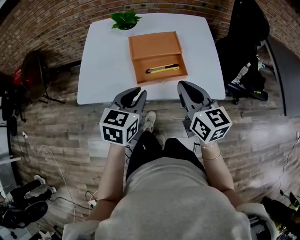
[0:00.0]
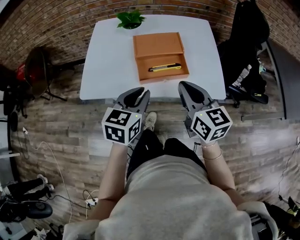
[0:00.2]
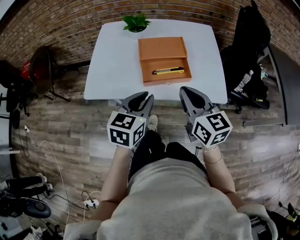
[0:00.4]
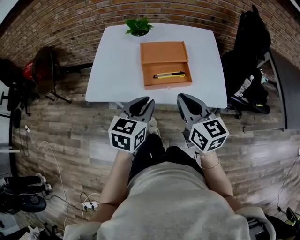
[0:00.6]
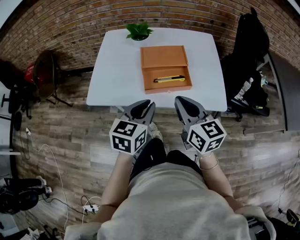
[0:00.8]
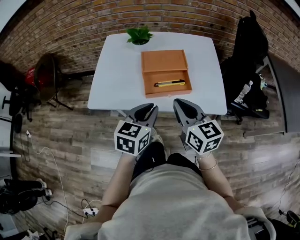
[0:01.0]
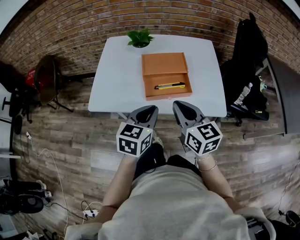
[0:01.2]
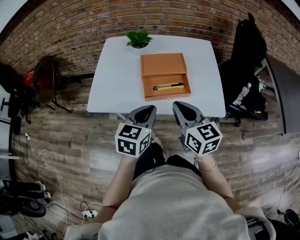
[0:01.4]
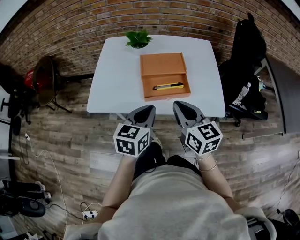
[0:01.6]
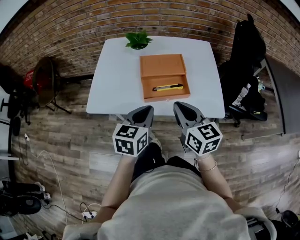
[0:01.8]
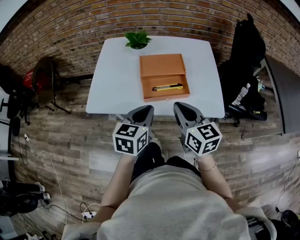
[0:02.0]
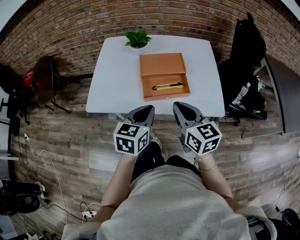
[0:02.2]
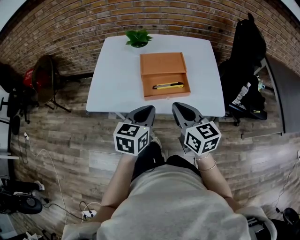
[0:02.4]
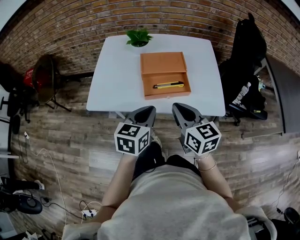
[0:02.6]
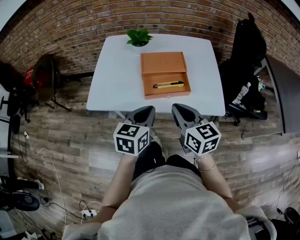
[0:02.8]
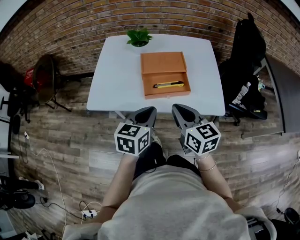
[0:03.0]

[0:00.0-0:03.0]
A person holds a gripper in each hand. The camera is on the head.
0:00.0 to 0:03.0: There are only small adjustments of the grippers.

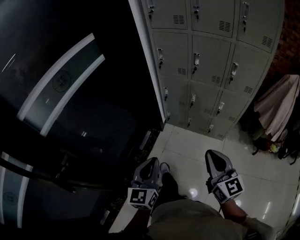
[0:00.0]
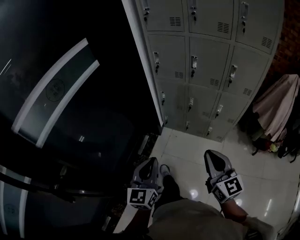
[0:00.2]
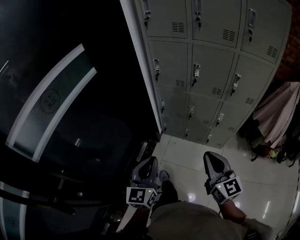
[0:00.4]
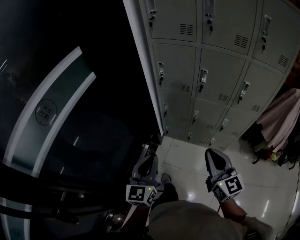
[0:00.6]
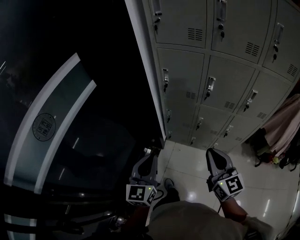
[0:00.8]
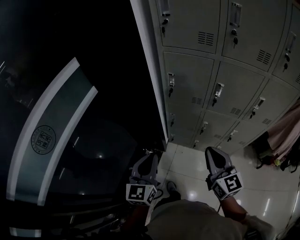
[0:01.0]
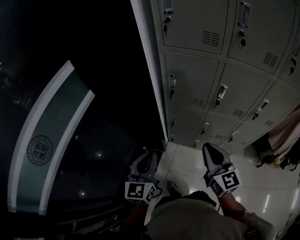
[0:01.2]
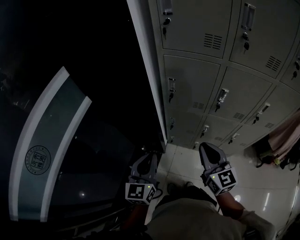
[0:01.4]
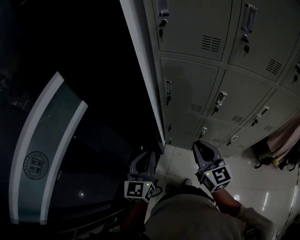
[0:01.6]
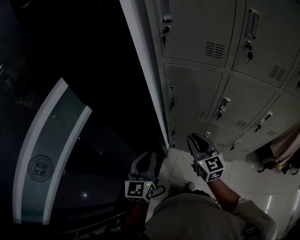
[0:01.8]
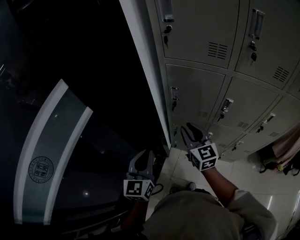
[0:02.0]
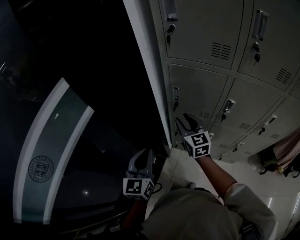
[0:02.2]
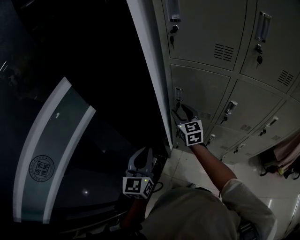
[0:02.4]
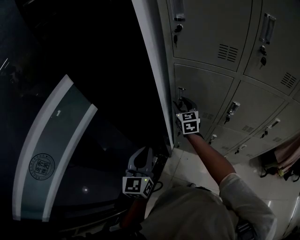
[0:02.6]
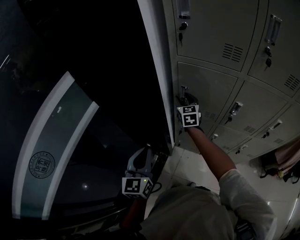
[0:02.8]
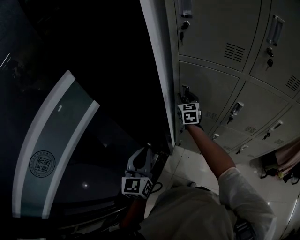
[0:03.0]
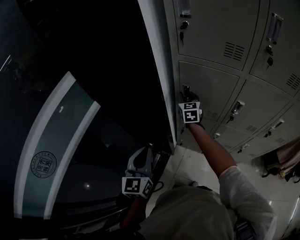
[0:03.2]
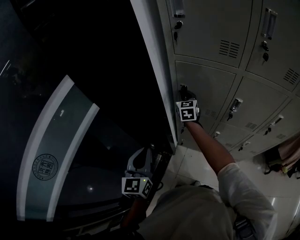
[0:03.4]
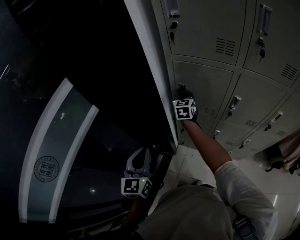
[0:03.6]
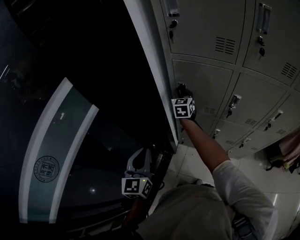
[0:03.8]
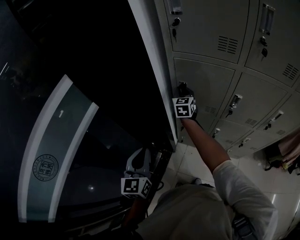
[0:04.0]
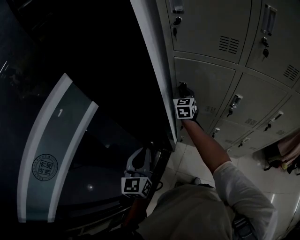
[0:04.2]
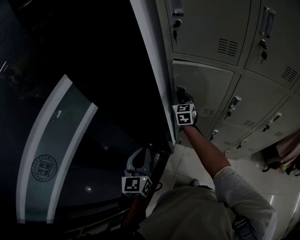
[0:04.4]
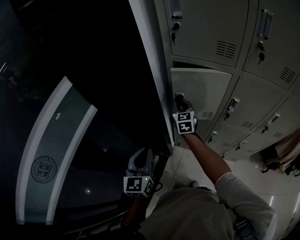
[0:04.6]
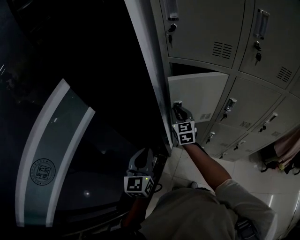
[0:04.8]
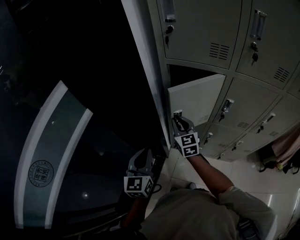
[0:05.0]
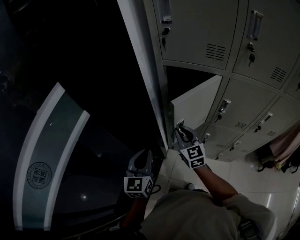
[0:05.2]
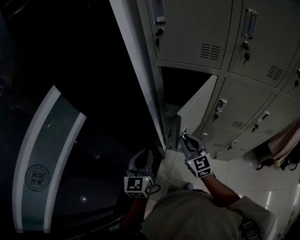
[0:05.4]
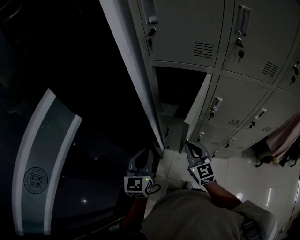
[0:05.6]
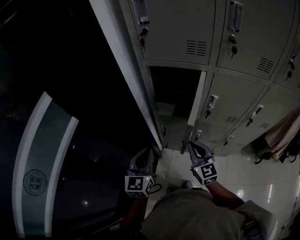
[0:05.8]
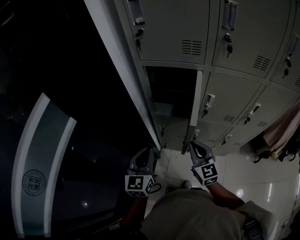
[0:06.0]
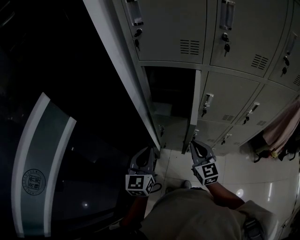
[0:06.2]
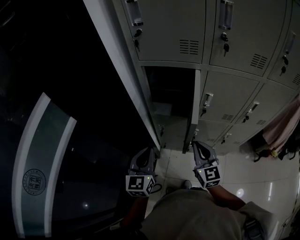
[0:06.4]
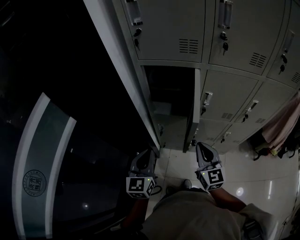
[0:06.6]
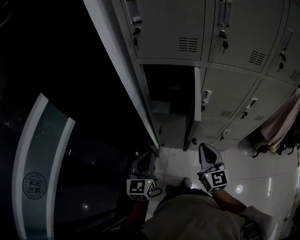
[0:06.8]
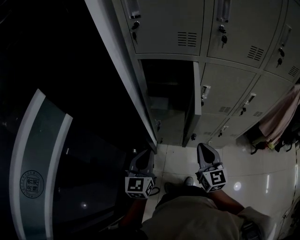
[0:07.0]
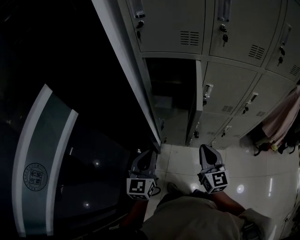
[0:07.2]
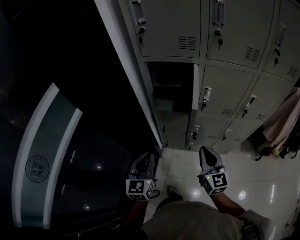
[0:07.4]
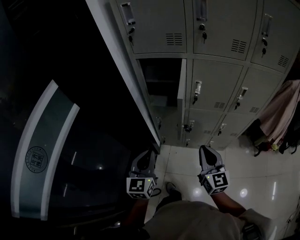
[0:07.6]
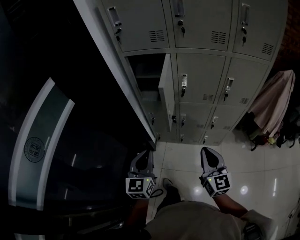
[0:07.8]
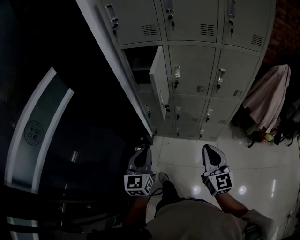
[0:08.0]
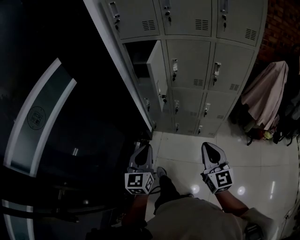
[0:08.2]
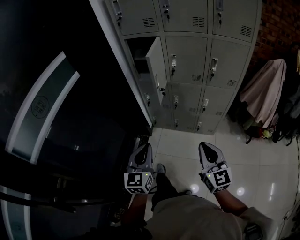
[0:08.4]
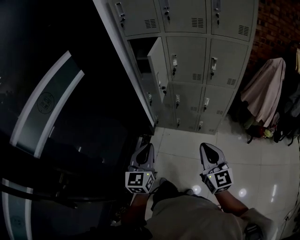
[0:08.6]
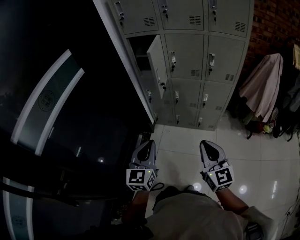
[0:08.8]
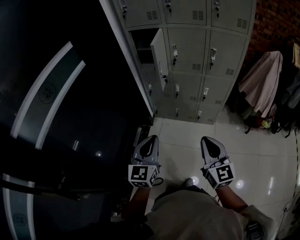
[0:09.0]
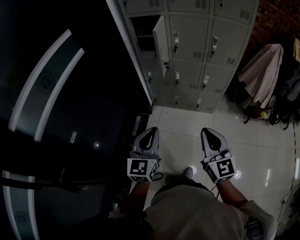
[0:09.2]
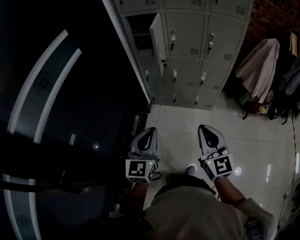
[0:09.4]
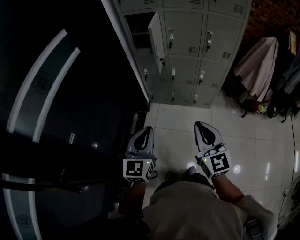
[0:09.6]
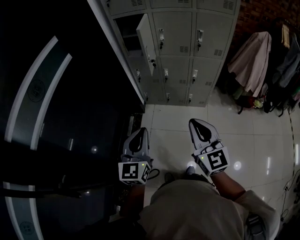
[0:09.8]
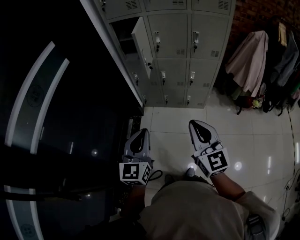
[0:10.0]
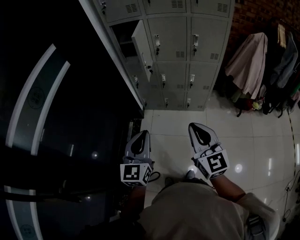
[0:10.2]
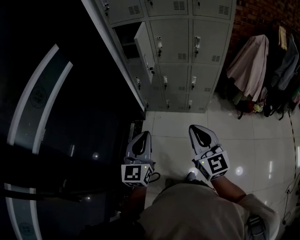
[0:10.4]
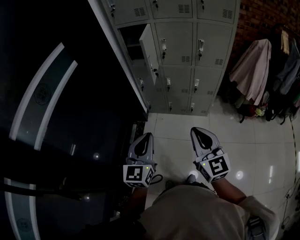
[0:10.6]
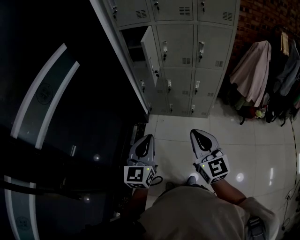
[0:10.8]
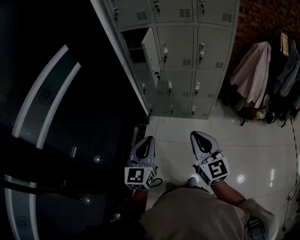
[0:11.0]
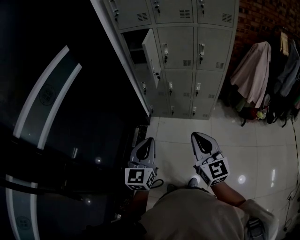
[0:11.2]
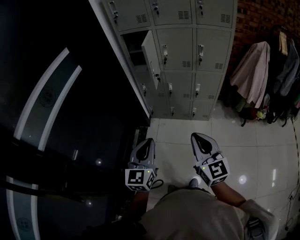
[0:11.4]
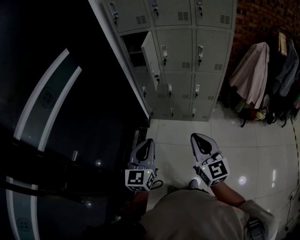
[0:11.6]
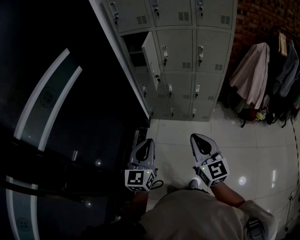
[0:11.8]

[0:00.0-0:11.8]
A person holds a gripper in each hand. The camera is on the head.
0:00.0 to 0:01.4: Both grippers are carried forward, about 40 cm.
0:01.4 to 0:03.0: The right gripper goes some 40 cm forward, and opens its fingers; the left gripper is displaced forward by about 10 cm.
0:03.0 to 0:04.4: The right gripper closes up.
0:04.4 to 0:06.0: The left gripper goes some 10 cm to the right; the right gripper heads backward and to the right, covering roughly 30 cm.
0:06.0 to 0:07.4: The right gripper is displaced backward and upward by approximately 10 cm. The left gripper heads backward, covering roughly 10 cm.
0:07.4 to 0:08.8: The right gripper is displaced backward by approximately 40 cm, while the left gripper moves backward and to the right, approximately 40 cm.
0:08.8 to 0:10.4: The two grippers go roughly 5 cm backward.
0:10.4 to 0:11.8: There are only small adjustments of the grippers.

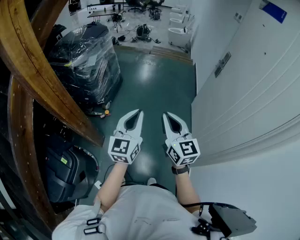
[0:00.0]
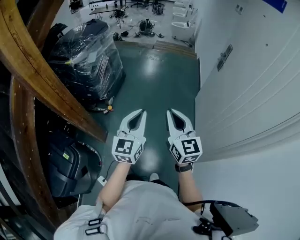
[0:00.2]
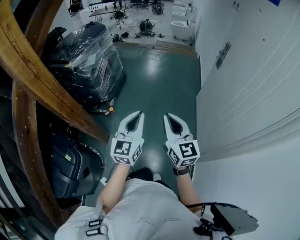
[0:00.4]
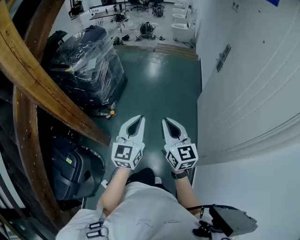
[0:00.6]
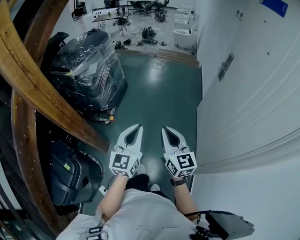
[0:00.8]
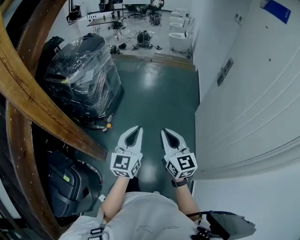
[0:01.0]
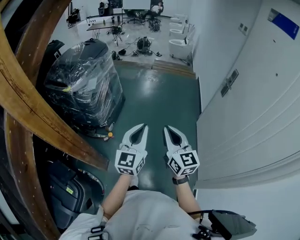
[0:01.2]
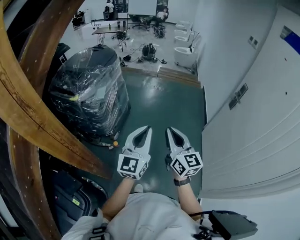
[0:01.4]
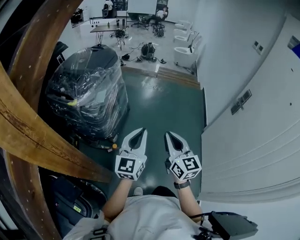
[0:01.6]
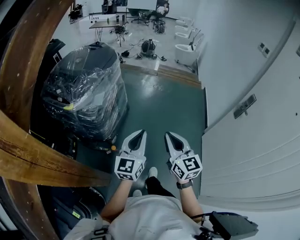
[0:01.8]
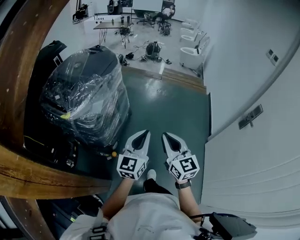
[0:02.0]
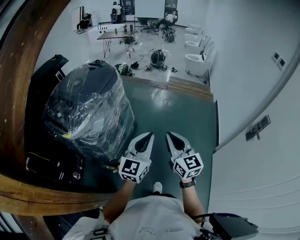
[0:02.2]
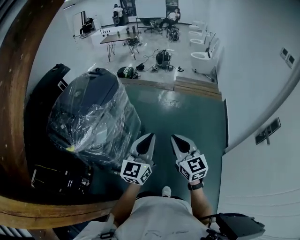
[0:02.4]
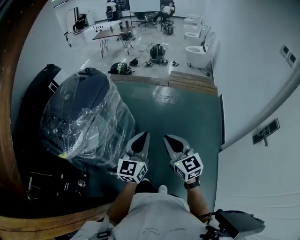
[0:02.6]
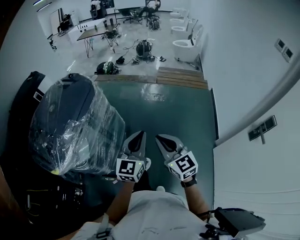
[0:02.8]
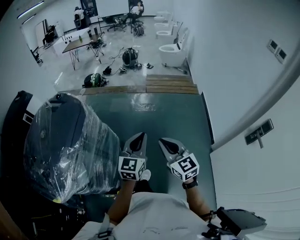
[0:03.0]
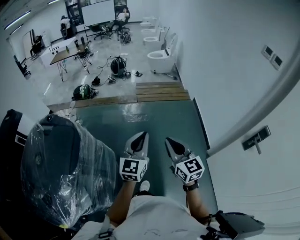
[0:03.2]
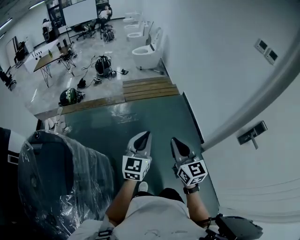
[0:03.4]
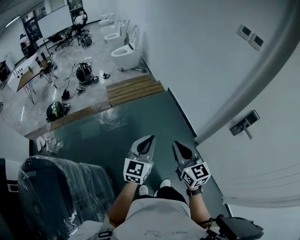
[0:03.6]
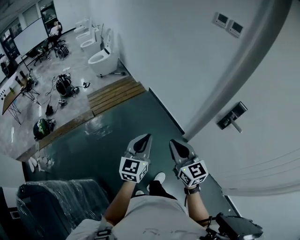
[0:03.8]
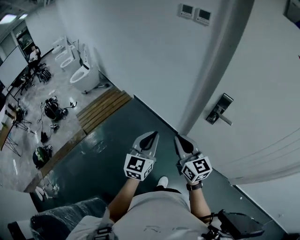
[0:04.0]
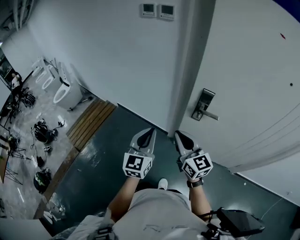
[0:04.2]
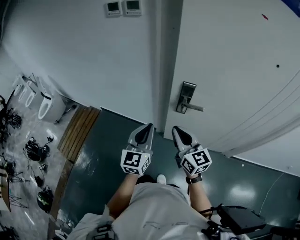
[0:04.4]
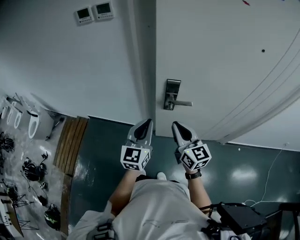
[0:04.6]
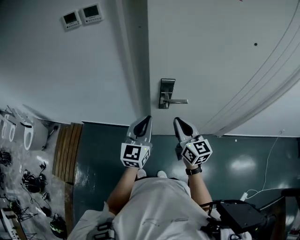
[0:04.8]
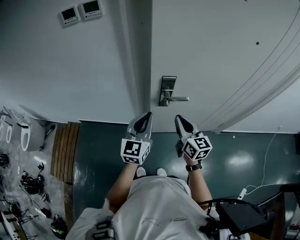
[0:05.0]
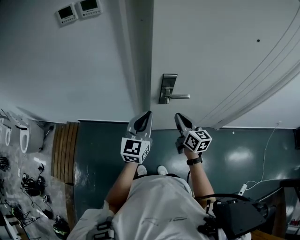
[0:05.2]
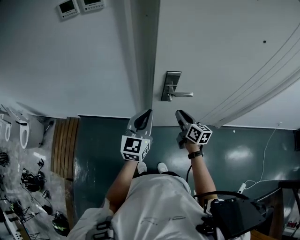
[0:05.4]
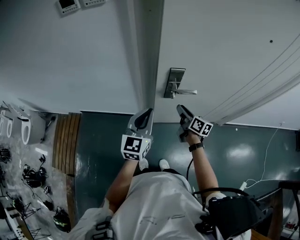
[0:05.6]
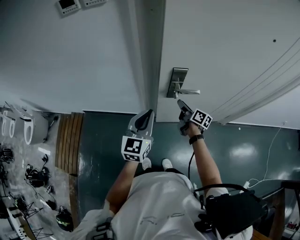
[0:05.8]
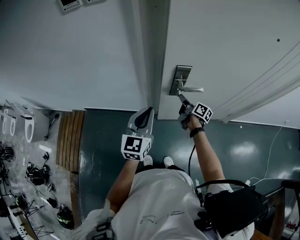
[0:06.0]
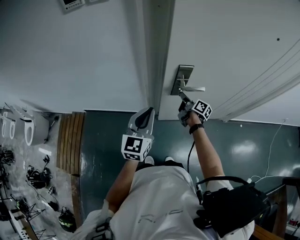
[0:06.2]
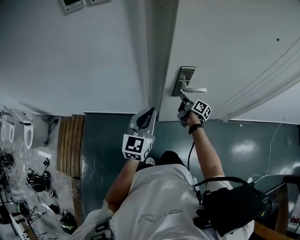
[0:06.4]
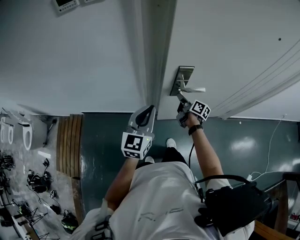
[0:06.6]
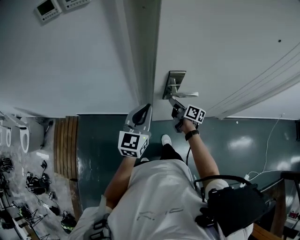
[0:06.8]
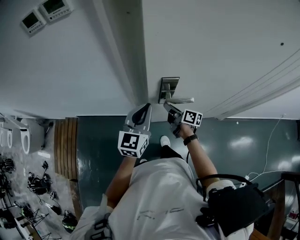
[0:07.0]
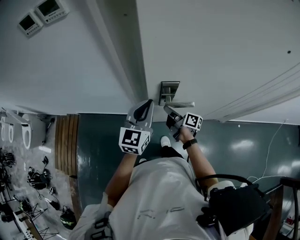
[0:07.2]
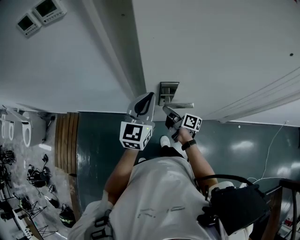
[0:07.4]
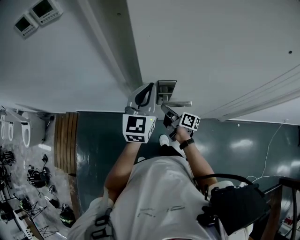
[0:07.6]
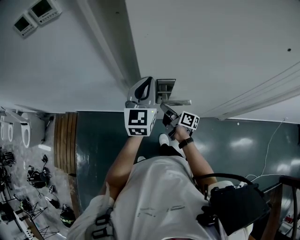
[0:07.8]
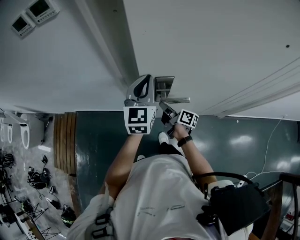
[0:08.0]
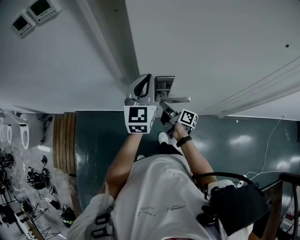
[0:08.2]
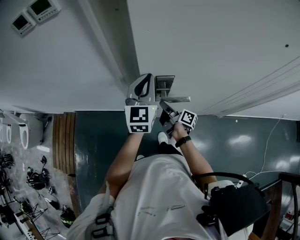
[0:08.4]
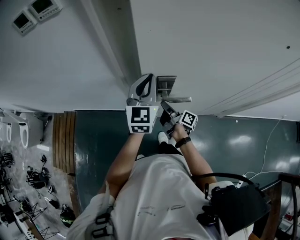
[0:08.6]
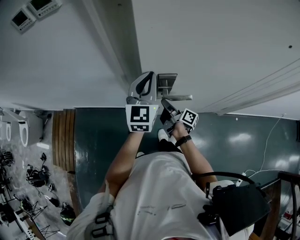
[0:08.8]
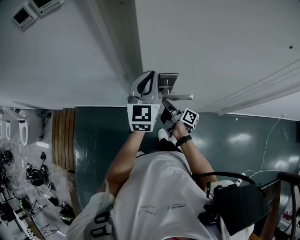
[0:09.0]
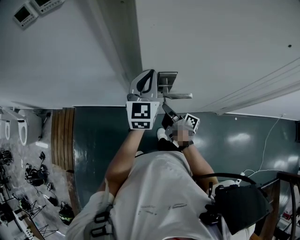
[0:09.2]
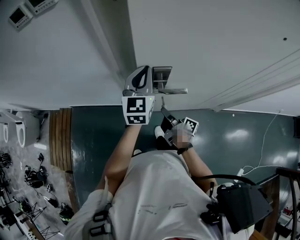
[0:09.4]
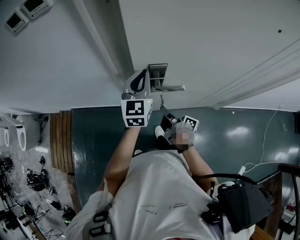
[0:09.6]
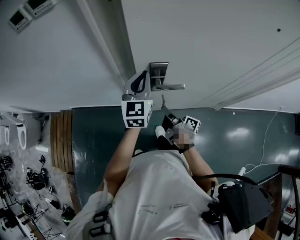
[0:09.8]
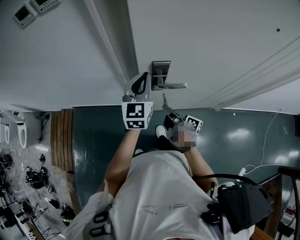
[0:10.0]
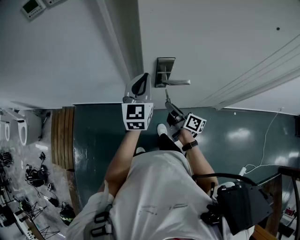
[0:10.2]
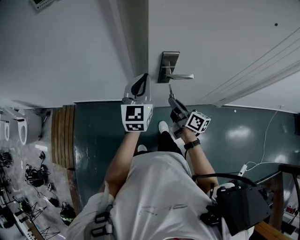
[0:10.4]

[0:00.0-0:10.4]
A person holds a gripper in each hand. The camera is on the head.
0:00.0 to 0:01.4: Both grippers travel together forward, roughly 20 cm.
0:01.4 to 0:03.0: Both grippers are carried forward, about 50 cm.
0:03.0 to 0:04.4: The pair of grippers is taken roughly 50 cm. The right gripper rotates approximately 80 degrees, while the left gripper rotates some 70 degrees.
0:04.4 to 0:06.0: The right gripper heads downward and forward, covering some 30 cm, twists roughly 60 degrees clockwise, seen from behind, and opens its fingers. Meanwhile the left gripper is displaced forward by about 10 cm.
0:06.0 to 0:07.4: The left gripper moves forward and to the right, some 15 cm.
0:07.4 to 0:09.0: The grippers stay close to where they were, moving slightly.
0:09.0 to 0:10.4: The right gripper goes about 15 cm backward and upward, and swivels roughly 30 degrees. The left gripper is displaced backward and to the left by about 10 cm.
